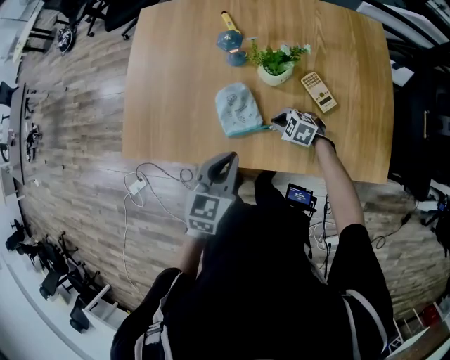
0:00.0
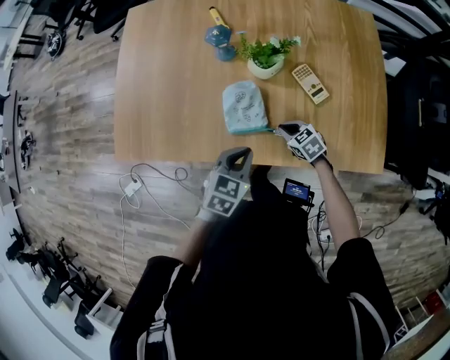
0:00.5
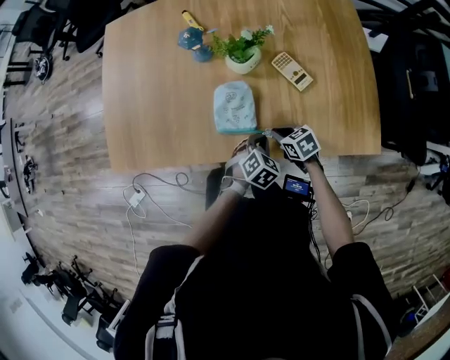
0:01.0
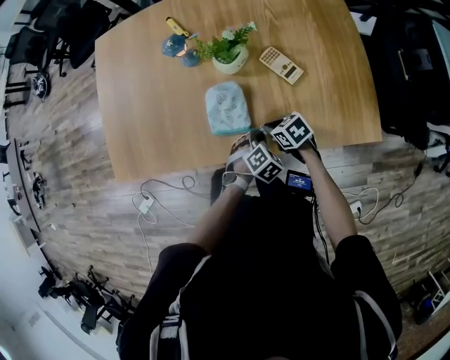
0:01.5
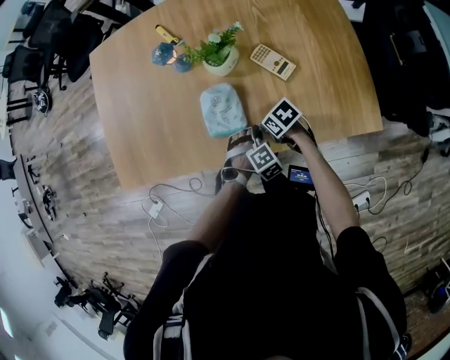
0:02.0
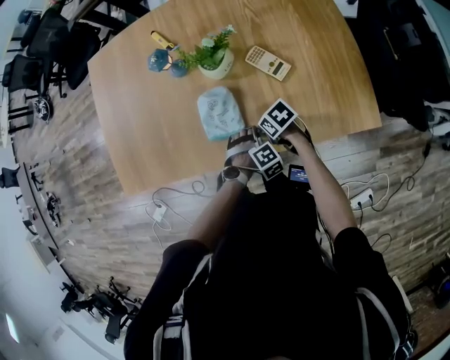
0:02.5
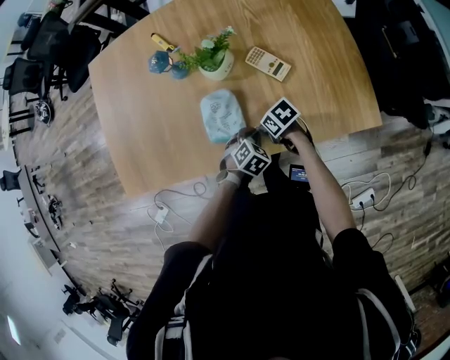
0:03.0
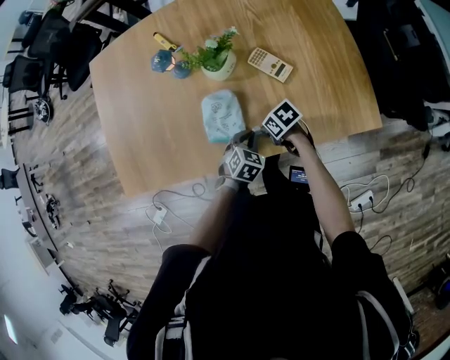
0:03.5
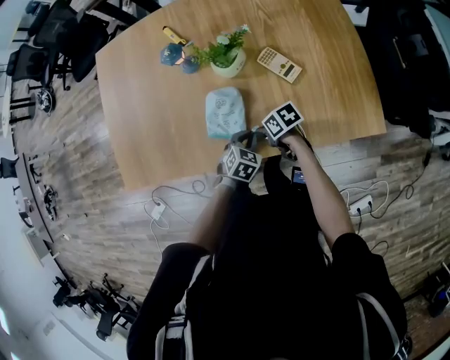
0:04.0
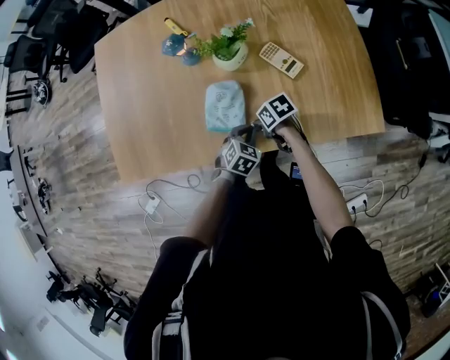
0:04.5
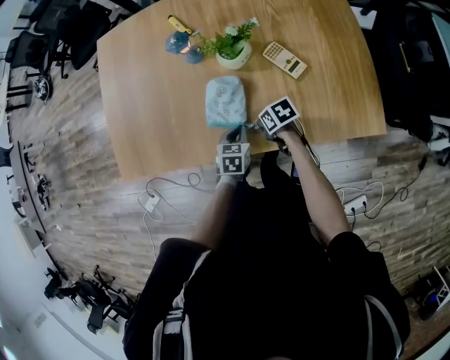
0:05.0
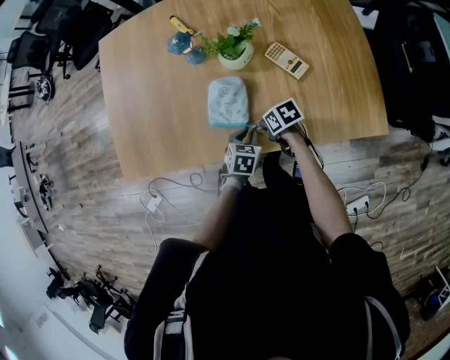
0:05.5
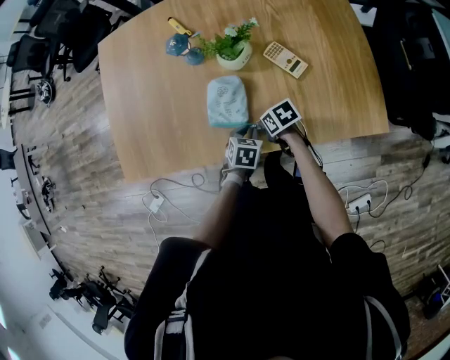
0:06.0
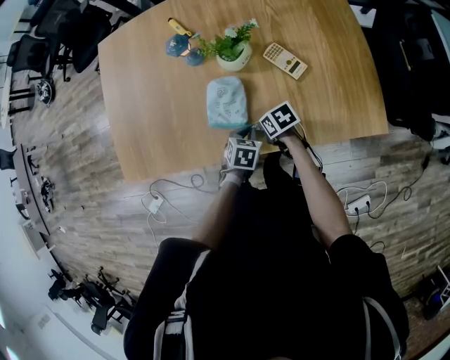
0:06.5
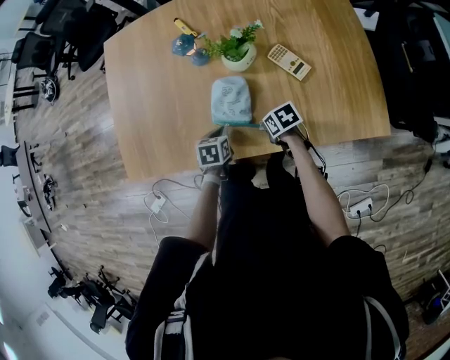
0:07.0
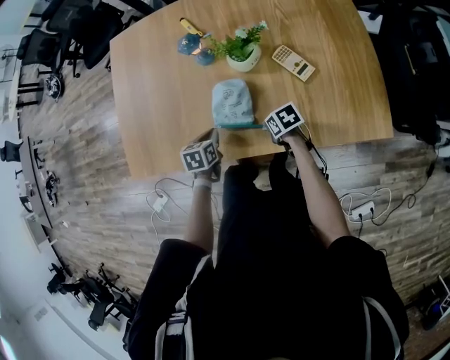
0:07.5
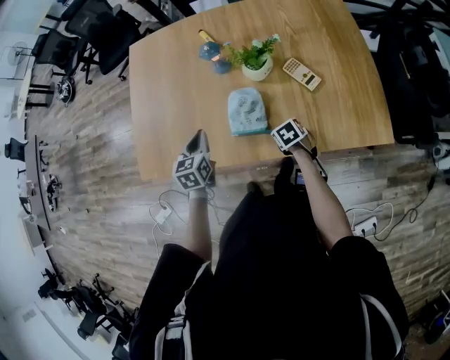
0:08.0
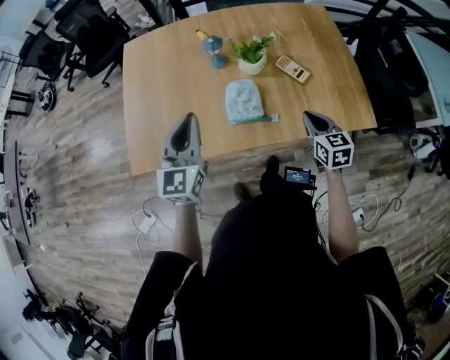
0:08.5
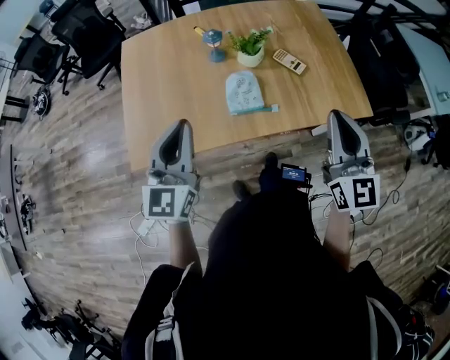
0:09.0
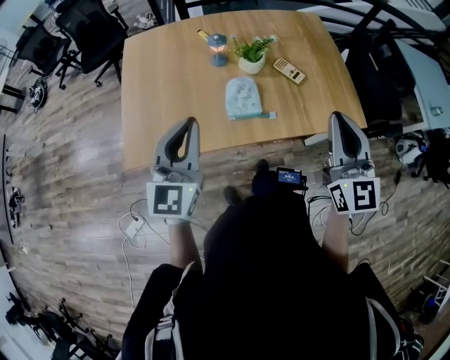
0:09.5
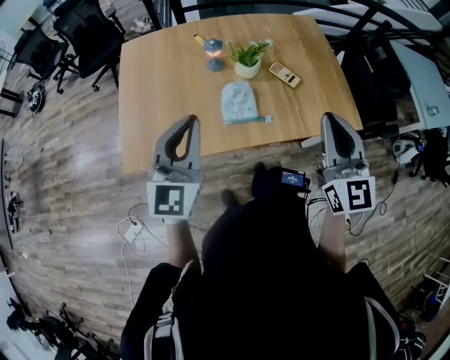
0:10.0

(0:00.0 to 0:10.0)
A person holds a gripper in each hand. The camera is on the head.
0:00.0 - 0:02.0: The left gripper goes some 25 cm downward, and rolls clockwise, seen from behind, by roughly 60 degrees. Meanwhile the right gripper changes place by some 10 cm, and twists some 50 degrees clockwise, seen from behind.
0:02.0 - 0:04.0: The left gripper changes its angle by approximately 40 degrees.
0:04.0 - 0:06.0: The left gripper changes its angle by some 20 degrees.
0:06.0 - 0:08.0: The right gripper rotates approximately 30 degrees. The left gripper goes approximately 25 cm to the left, upward and forward, and swivels about 40 degrees.
0:08.0 - 0:10.0: The right gripper heads upward, covering about 50 cm, and angles its fingers upward, by about 70 degrees; the left gripper travels upward by approximately 25 cm, and angles its fingers upward, by about 30 degrees.

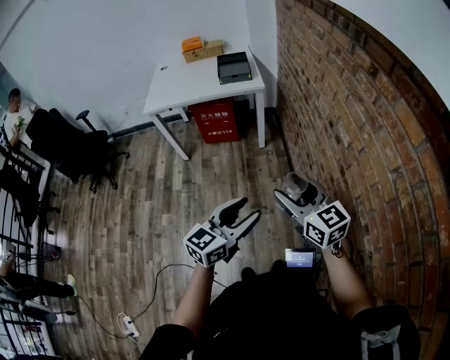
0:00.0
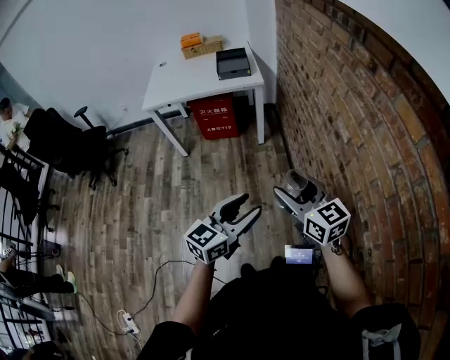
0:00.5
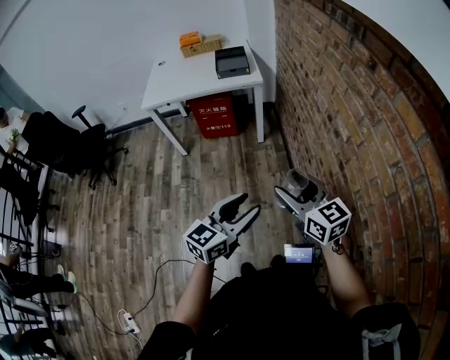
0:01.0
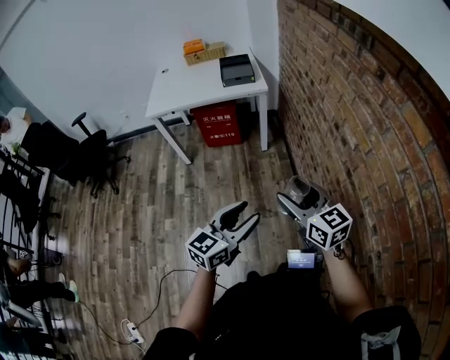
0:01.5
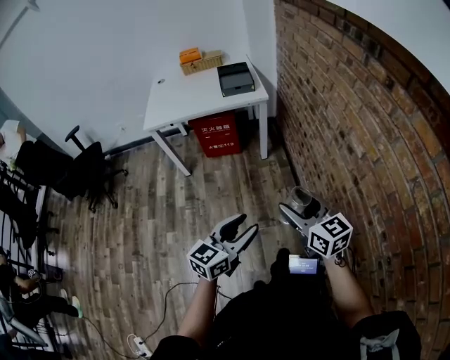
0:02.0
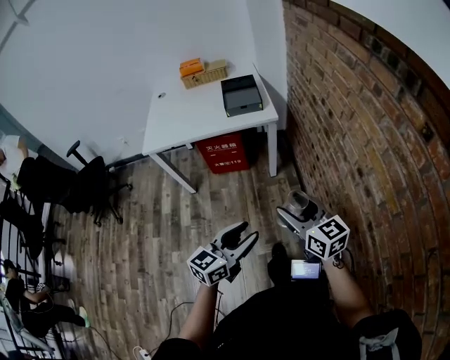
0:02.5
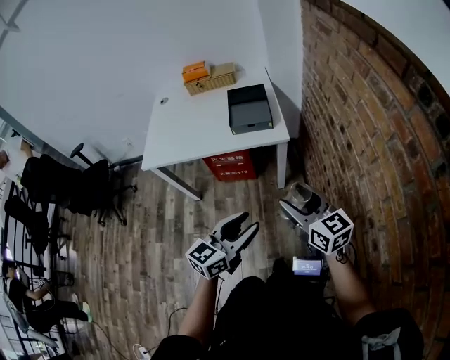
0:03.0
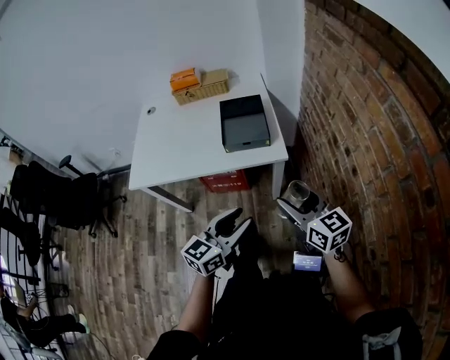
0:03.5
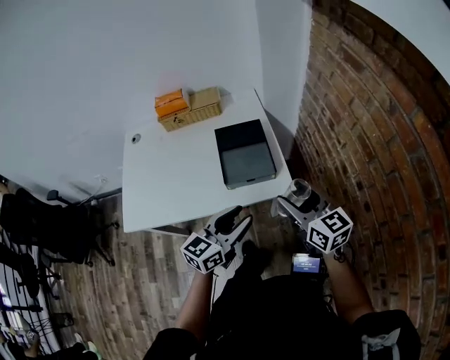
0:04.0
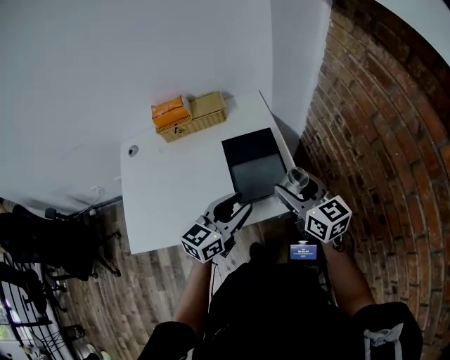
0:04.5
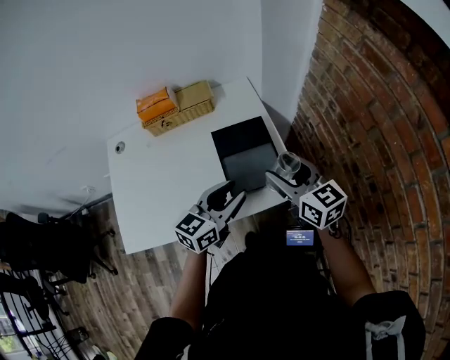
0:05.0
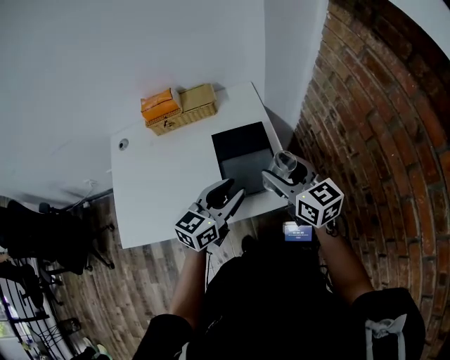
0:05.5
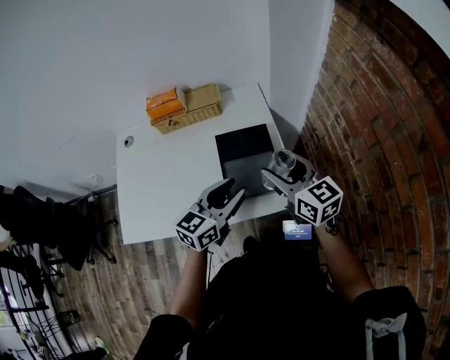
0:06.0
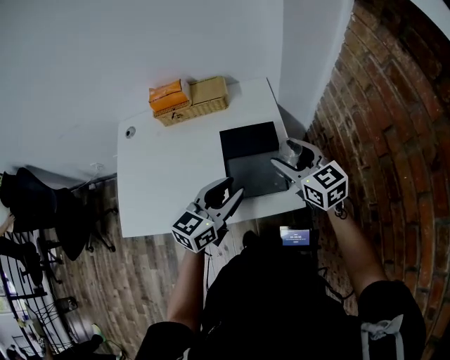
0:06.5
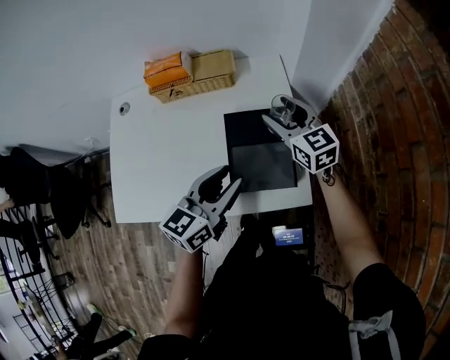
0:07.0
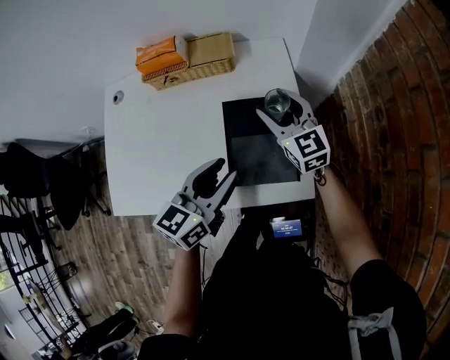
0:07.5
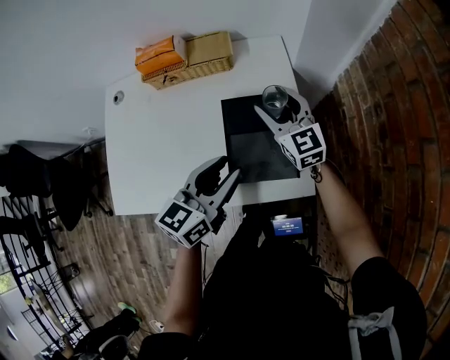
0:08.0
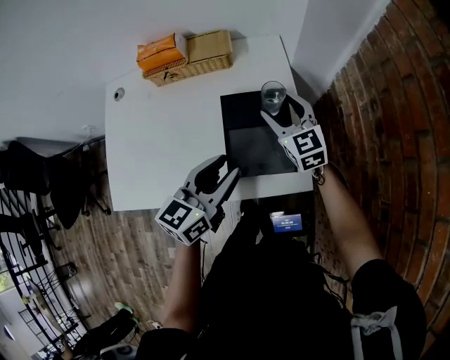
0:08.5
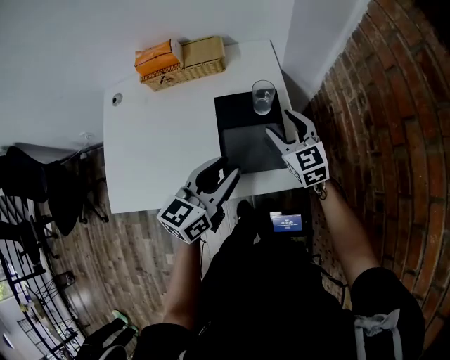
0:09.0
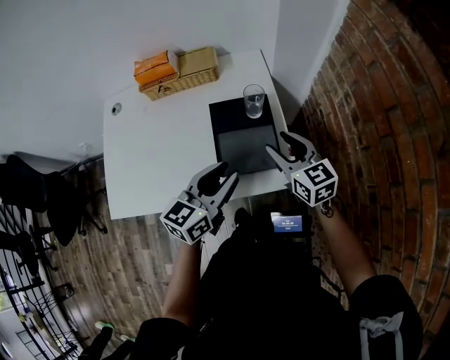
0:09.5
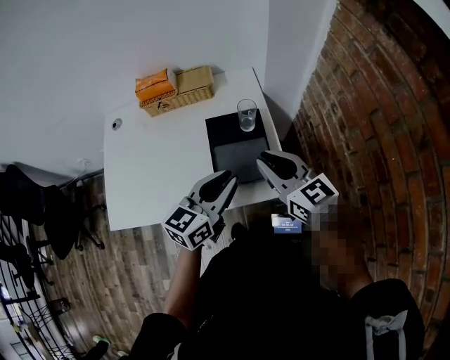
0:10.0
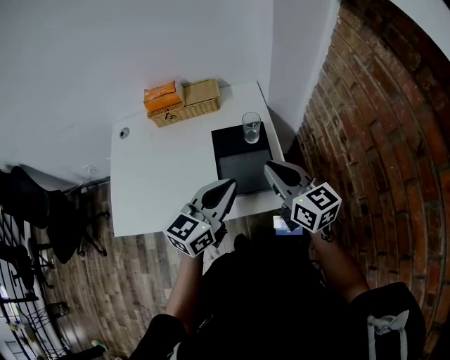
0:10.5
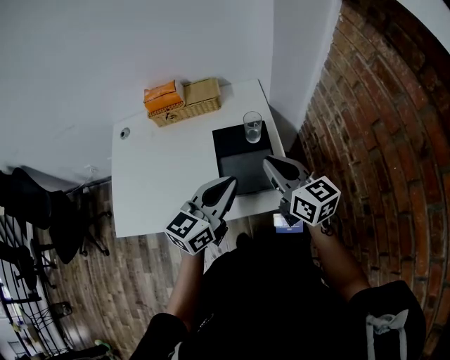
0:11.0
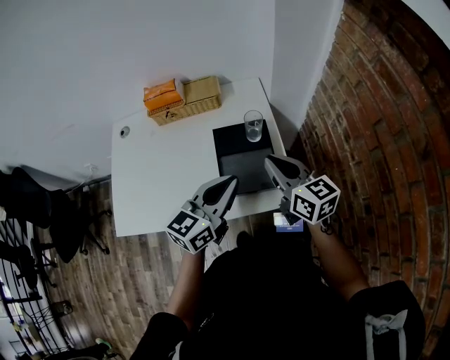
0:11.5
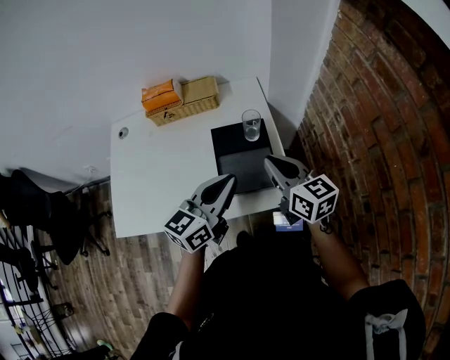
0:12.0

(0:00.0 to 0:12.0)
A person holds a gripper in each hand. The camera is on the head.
0:00.0 - 0:02.0: The two grippers go roughly 5 cm to the left.
0:02.0 - 0:04.0: The pair of grippers is taken forward, approximately 60 cm.
0:04.0 - 0:06.0: The right gripper travels forward and to the left by some 15 cm; the left gripper heads forward, covering some 15 cm.
0:06.0 - 0:08.0: The right gripper goes about 20 cm forward and downward, while the left gripper moves roughly 5 cm.
0:08.0 - 0:10.0: The left gripper is displaced backward by approximately 5 cm, while the right gripper moves backward and upward, approximately 20 cm, and closes up.
0:10.0 - 0:12.0: The grippers make only small movements.

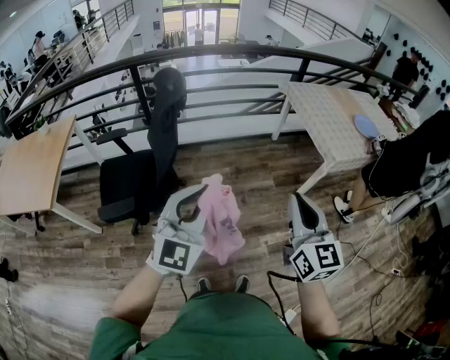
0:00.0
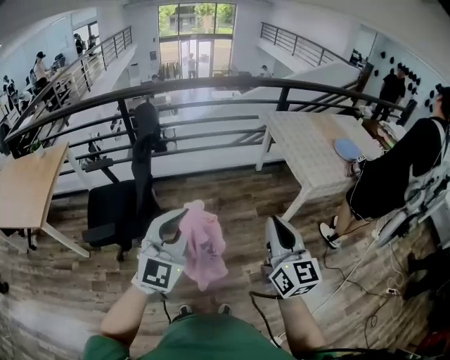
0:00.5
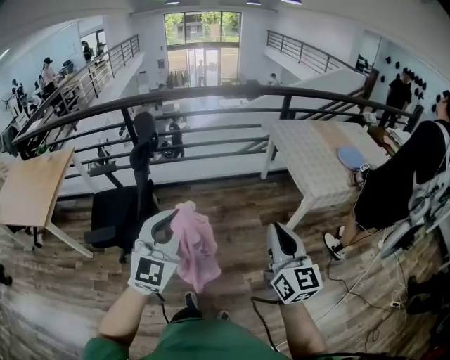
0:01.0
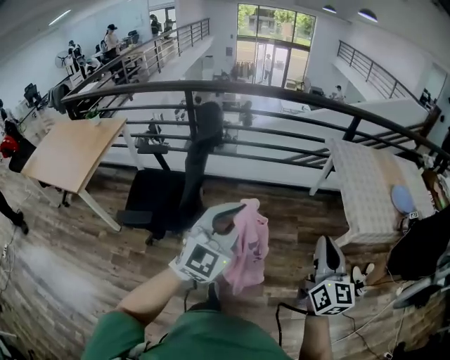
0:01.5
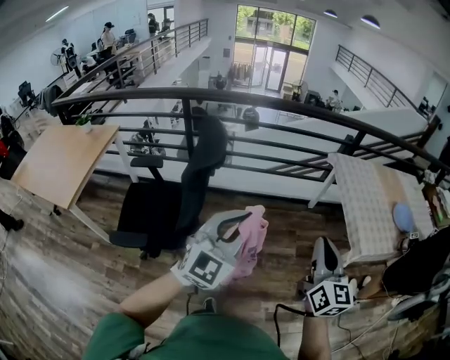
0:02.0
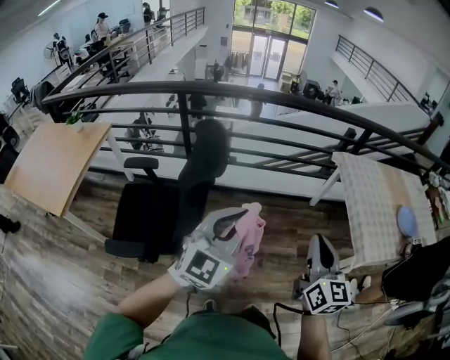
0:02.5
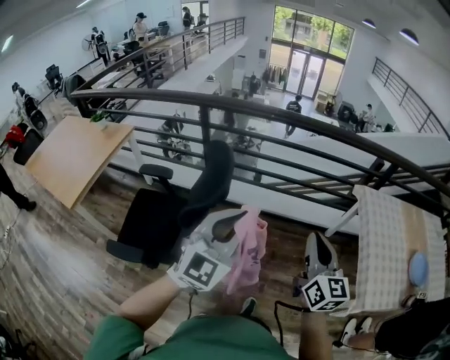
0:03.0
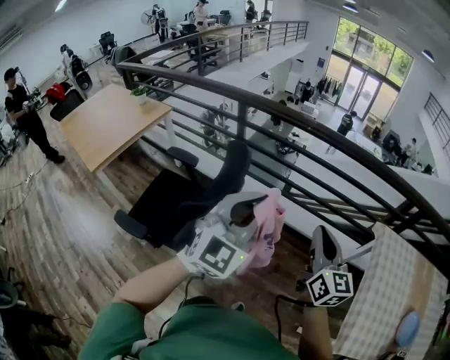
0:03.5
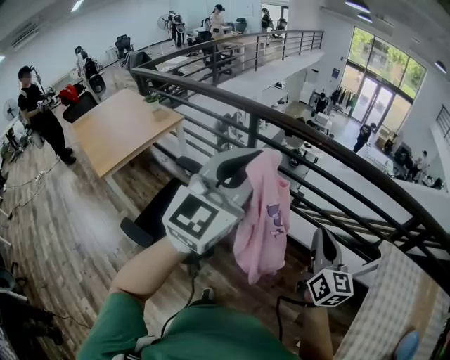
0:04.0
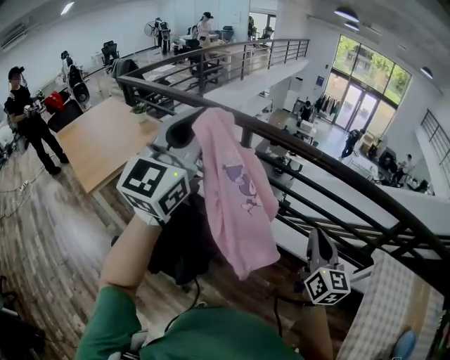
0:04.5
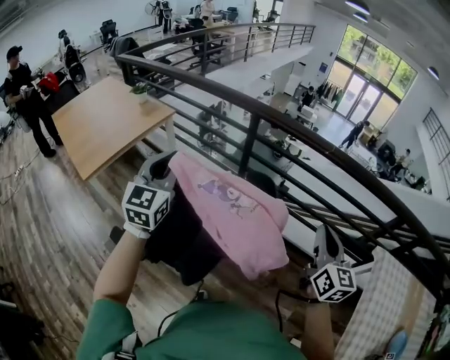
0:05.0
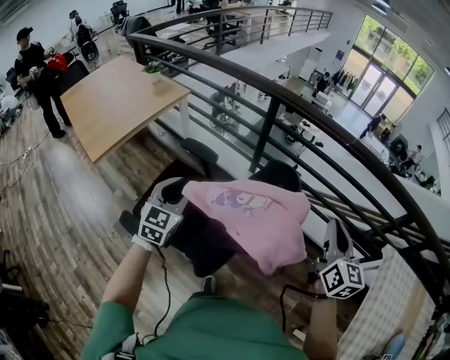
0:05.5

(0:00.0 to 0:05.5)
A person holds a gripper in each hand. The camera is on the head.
0:00.0 - 0:02.0: Both grippers travel together forward, approximately 20 cm.
0:02.0 - 0:03.5: The right gripper moves some 40 cm, and swivels about 30 degrees; the left gripper ends up approximately 30 cm from where it was, and turns by about 30 degrees.
0:03.5 - 0:05.5: The left gripper is displaced to the left and downward by some 40 cm, turns by roughly 30 degrees, and opens its fingers. Meanwhile the right gripper is displaced forward and to the left by some 20 cm.
